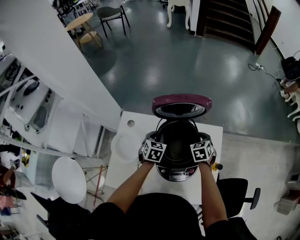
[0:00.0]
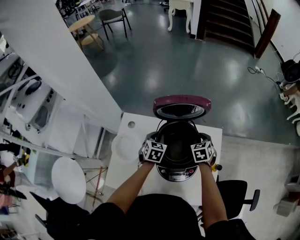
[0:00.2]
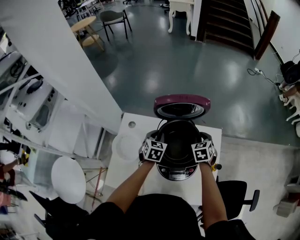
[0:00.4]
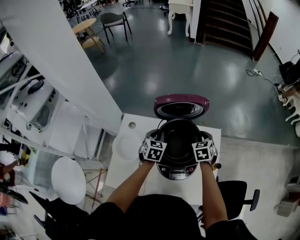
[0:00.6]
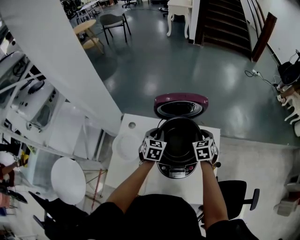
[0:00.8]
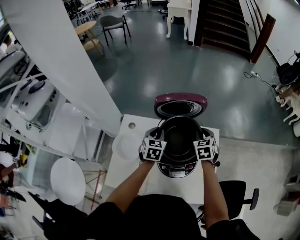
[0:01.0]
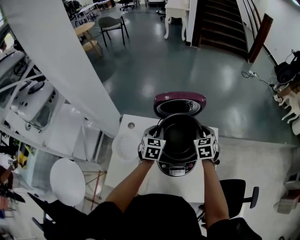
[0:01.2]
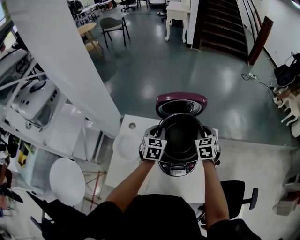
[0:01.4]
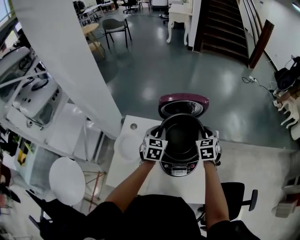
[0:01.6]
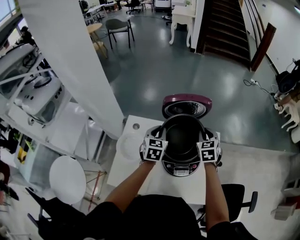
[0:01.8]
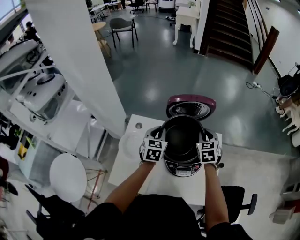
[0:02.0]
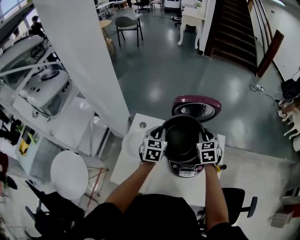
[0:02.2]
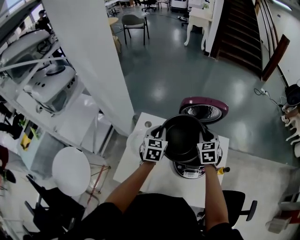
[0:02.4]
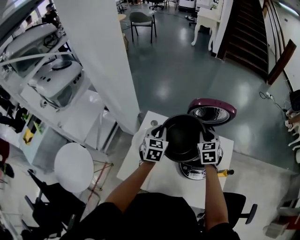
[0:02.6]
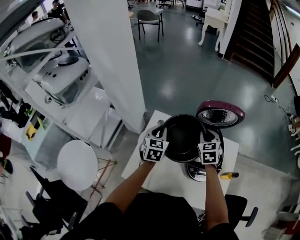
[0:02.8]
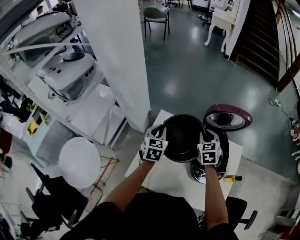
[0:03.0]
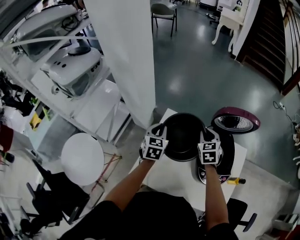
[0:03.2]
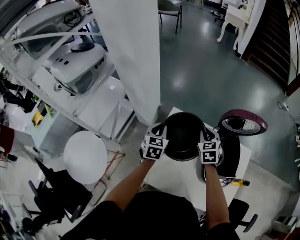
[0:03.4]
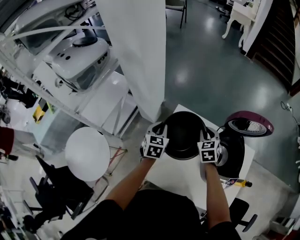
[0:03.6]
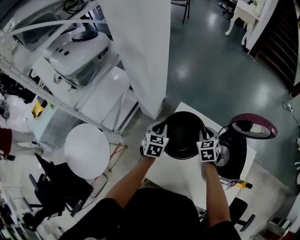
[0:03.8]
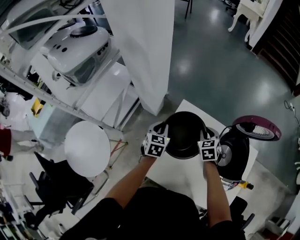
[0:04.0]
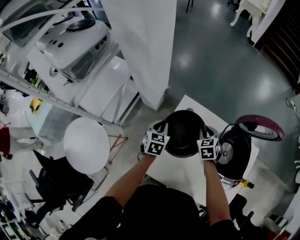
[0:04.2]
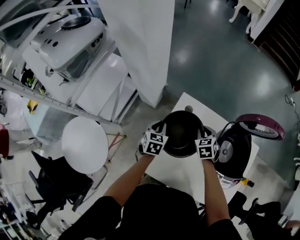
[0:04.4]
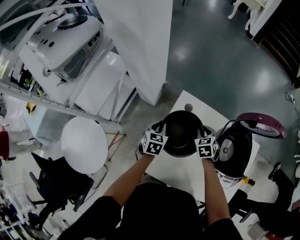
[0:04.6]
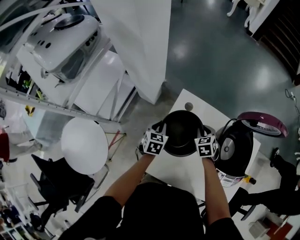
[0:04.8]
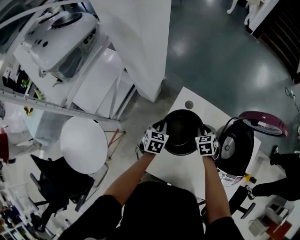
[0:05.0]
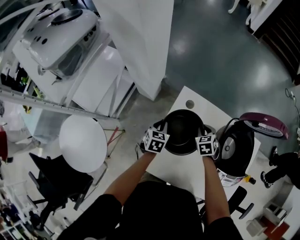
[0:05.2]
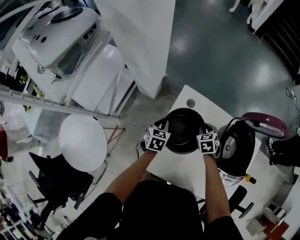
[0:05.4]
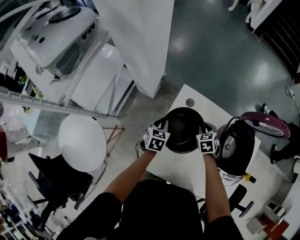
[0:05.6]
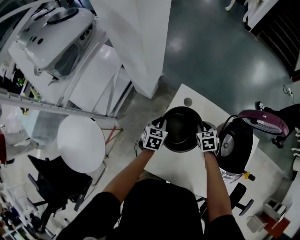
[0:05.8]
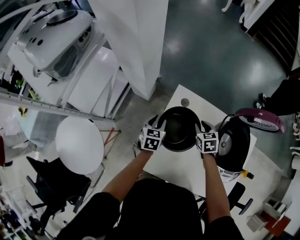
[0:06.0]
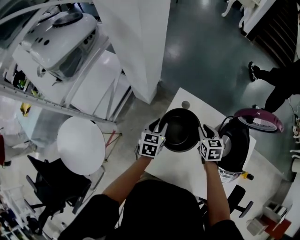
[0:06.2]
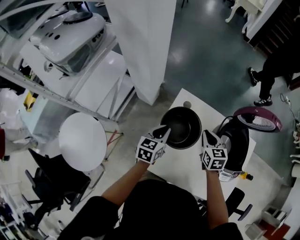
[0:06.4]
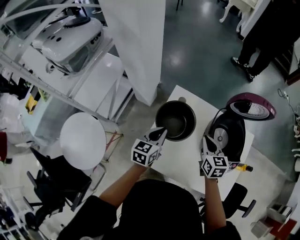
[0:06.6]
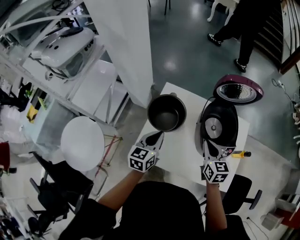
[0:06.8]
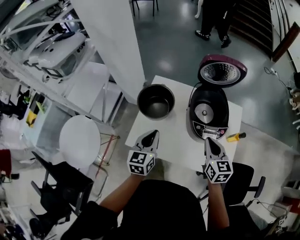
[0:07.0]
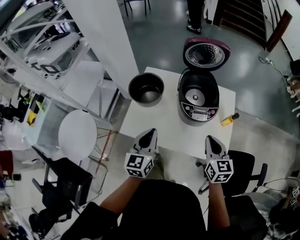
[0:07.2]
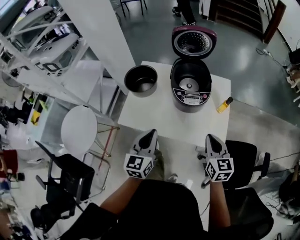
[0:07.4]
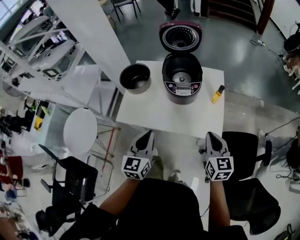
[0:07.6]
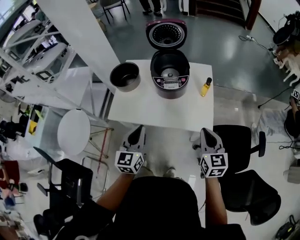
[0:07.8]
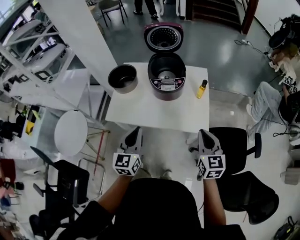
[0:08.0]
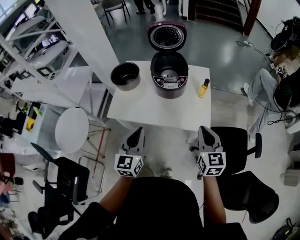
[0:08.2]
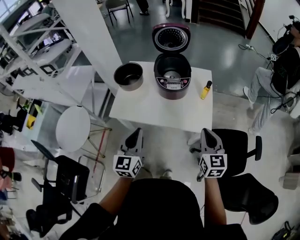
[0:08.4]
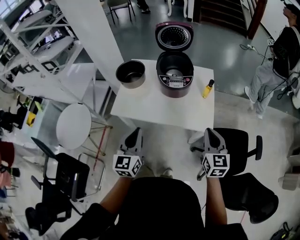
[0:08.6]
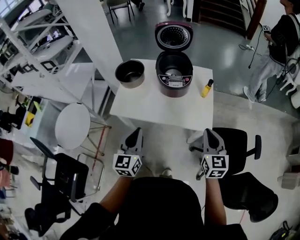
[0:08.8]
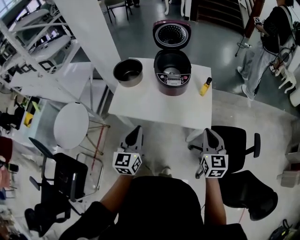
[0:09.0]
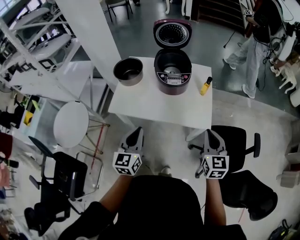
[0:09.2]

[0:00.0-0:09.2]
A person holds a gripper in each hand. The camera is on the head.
0:00.0 to 0:01.6: The two grippers go some 15 cm upward.
0:01.6 to 0:03.0: The two grippers go roughly 20 cm to the left.
0:03.0 to 0:04.6: Both grippers move downward and to the left, about 20 cm.
0:04.6 to 0:06.2: The grippers make only small movements.
0:06.2 to 0:07.6: The pair of grippers is taken backward and to the right, some 60 cm. The left gripper moves upward, about 20 cm, changes its angle by about 30 degrees, and closes, while the right gripper turns by approximately 30 degrees.
0:07.6 to 0:09.2: The two grippers go about 10 cm backward.

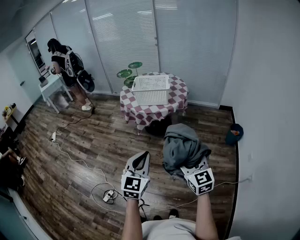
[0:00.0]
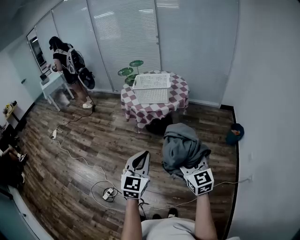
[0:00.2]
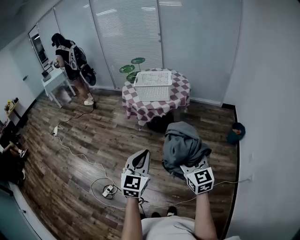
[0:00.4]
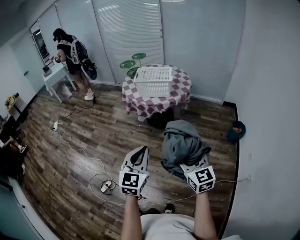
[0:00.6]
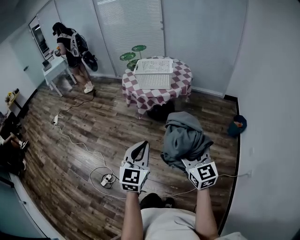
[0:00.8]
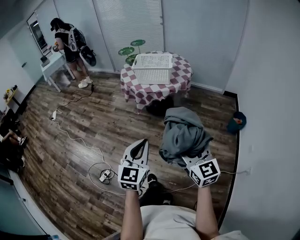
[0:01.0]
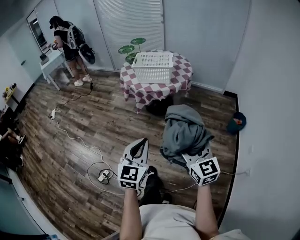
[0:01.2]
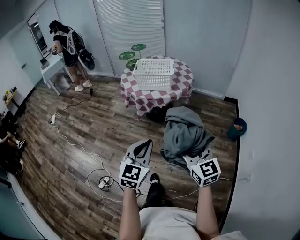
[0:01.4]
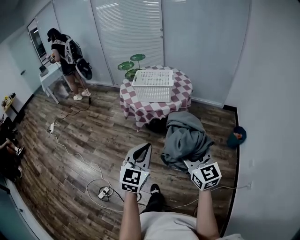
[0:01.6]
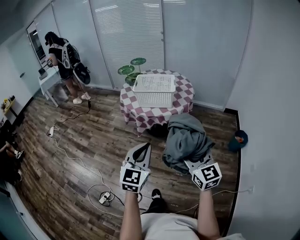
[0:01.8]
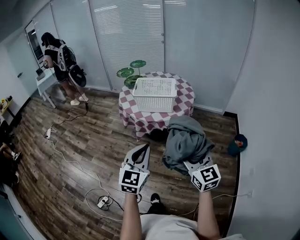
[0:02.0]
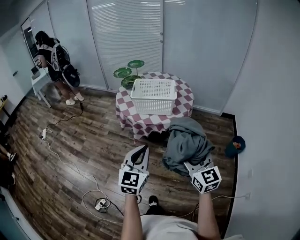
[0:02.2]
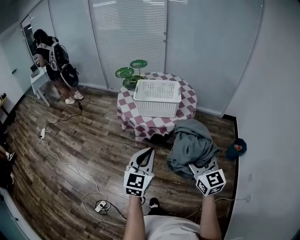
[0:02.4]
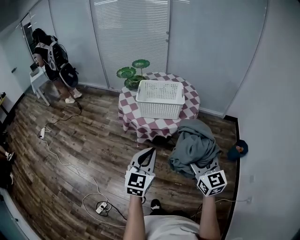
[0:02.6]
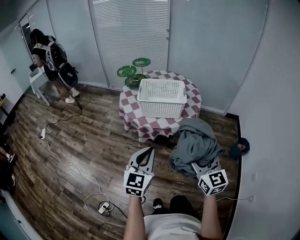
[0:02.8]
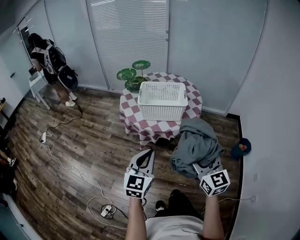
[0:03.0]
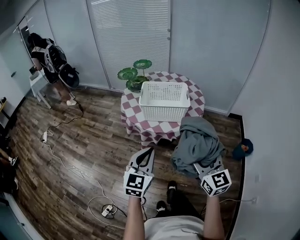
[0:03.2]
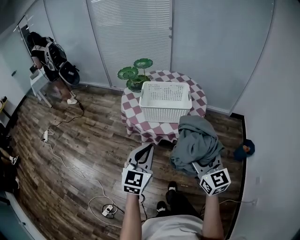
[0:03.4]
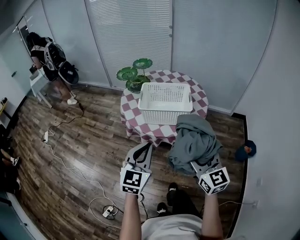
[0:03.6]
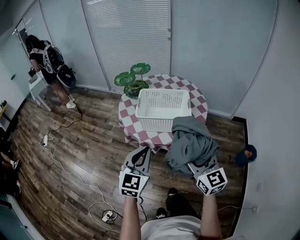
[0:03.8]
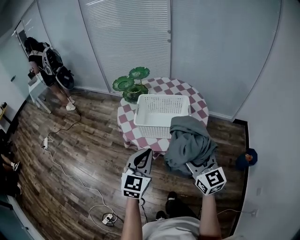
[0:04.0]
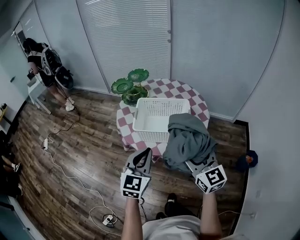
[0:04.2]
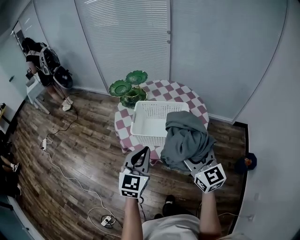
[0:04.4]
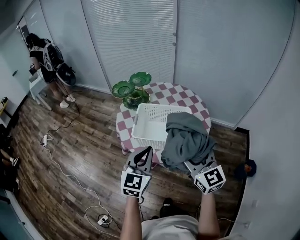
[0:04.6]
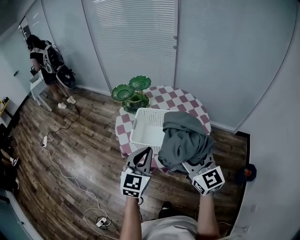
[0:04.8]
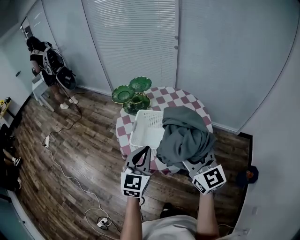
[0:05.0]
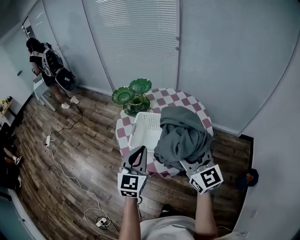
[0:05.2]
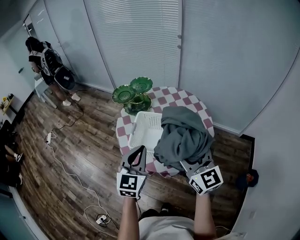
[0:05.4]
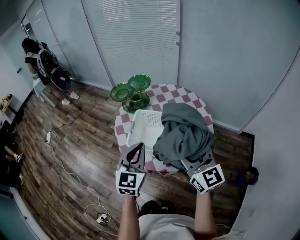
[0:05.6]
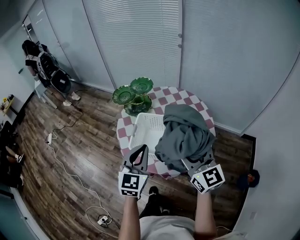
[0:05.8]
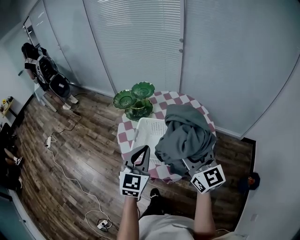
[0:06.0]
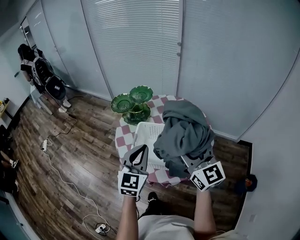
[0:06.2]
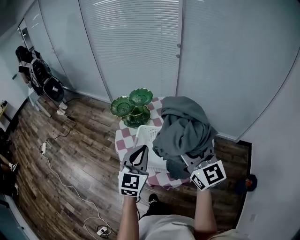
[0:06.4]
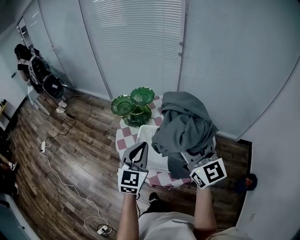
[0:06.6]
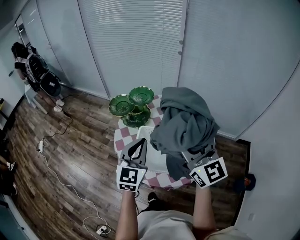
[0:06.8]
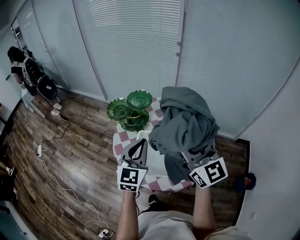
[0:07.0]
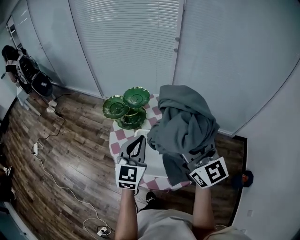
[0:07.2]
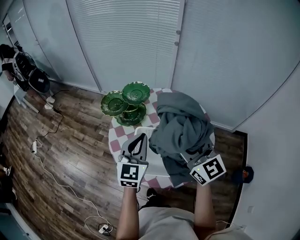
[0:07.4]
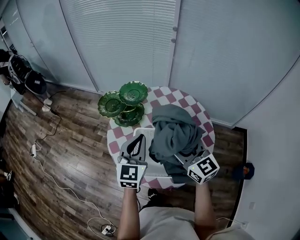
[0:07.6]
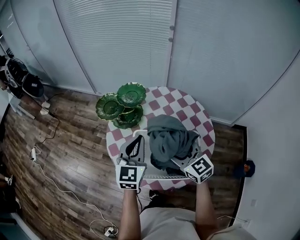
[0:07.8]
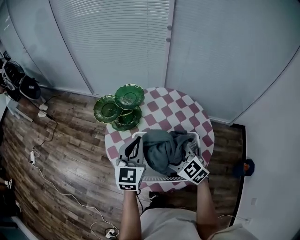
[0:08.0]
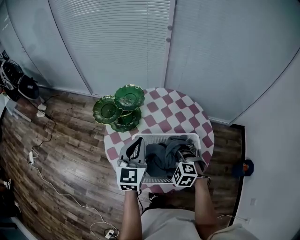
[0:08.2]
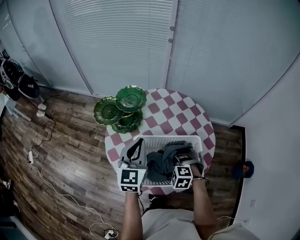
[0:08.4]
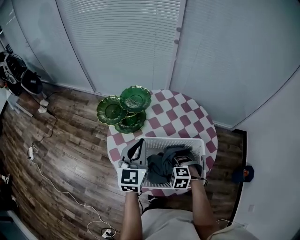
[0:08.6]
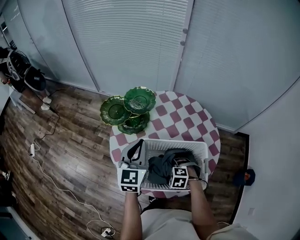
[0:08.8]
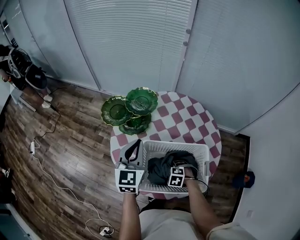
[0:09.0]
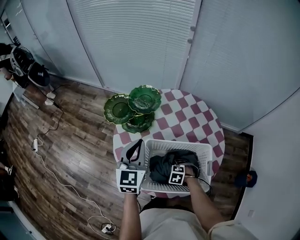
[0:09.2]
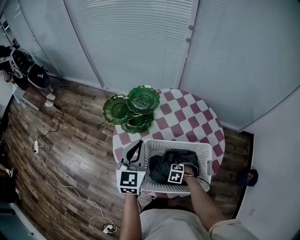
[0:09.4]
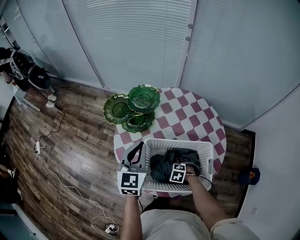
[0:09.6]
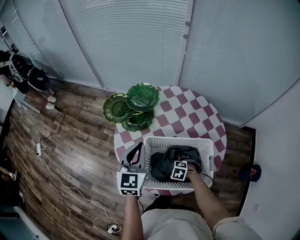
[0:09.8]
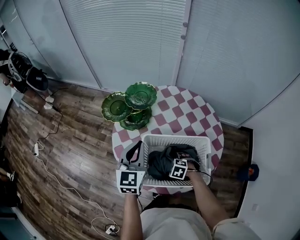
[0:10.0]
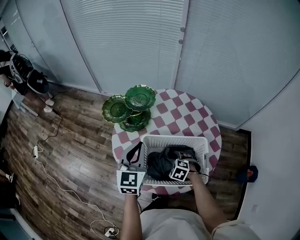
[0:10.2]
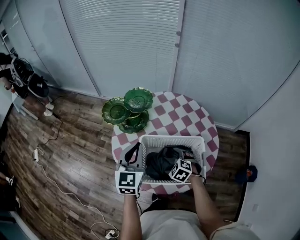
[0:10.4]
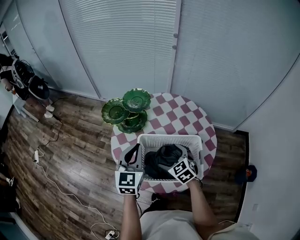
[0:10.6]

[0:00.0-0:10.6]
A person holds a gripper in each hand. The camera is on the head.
0:00.0 to 0:01.6: Both grippers move forward, about 10 cm.
0:01.6 to 0:03.0: The left gripper travels forward and to the left by about 25 cm, while the right gripper travels forward by roughly 20 cm.
0:03.0 to 0:04.6: Both grippers move forward, approximately 25 cm.
0:04.6 to 0:06.0: The grippers both shift forward by some 10 cm.
0:06.0 to 0:07.6: The right gripper shifts roughly 15 cm forward and downward. The left gripper shifts about 15 cm forward.
0:07.6 to 0:09.0: The right gripper goes roughly 35 cm downward, and tips its fingers downward by about 70 degrees; the left gripper ends up approximately 10 cm from where it was.
0:09.0 to 0:10.6: The left gripper moves about 5 cm, while the right gripper travels upward by approximately 20 cm, points its fingers roughly 40 degrees further upward, and opens up.

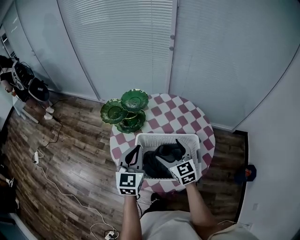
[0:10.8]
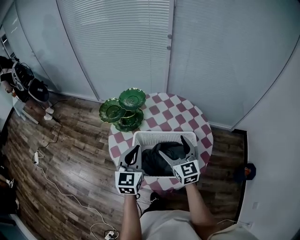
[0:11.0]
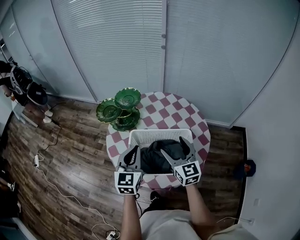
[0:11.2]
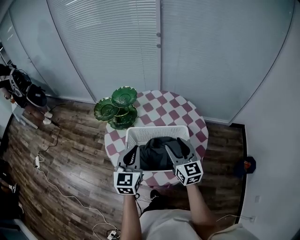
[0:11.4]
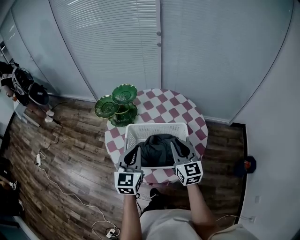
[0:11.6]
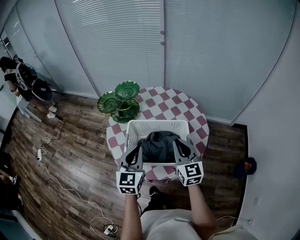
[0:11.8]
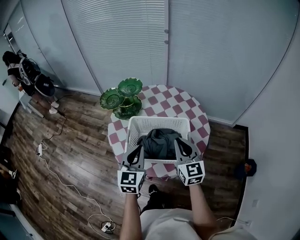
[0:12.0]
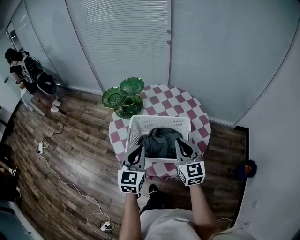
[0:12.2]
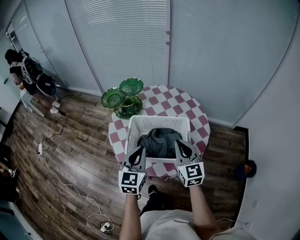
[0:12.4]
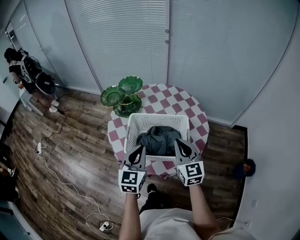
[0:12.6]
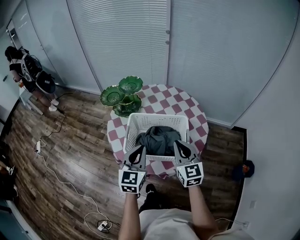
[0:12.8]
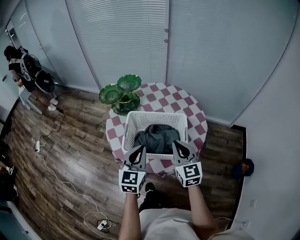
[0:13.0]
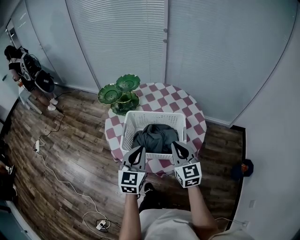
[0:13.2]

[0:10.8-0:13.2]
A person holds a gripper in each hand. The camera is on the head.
0:10.8 to 0:12.0: The left gripper heads backward and to the right, covering about 10 cm. The right gripper travels to the right, backward and upward by some 15 cm, and closes up.
0:12.0 to 0:13.2: The grippers make only small movements.

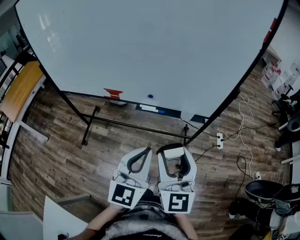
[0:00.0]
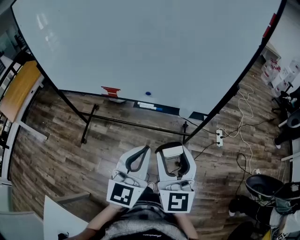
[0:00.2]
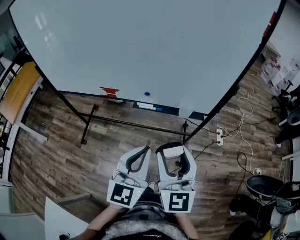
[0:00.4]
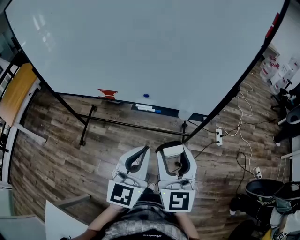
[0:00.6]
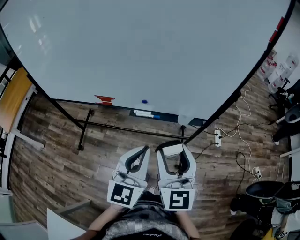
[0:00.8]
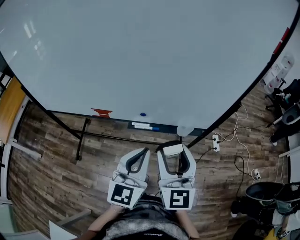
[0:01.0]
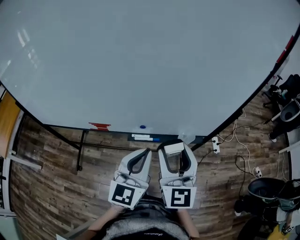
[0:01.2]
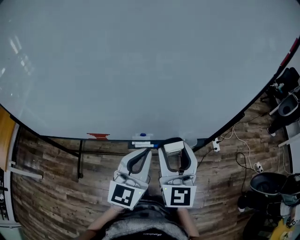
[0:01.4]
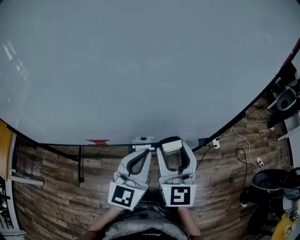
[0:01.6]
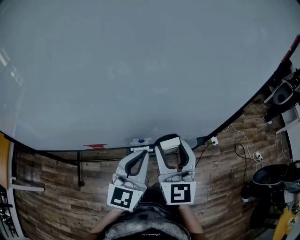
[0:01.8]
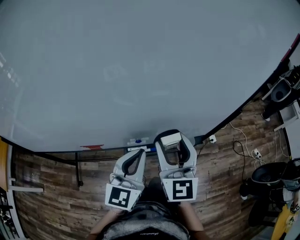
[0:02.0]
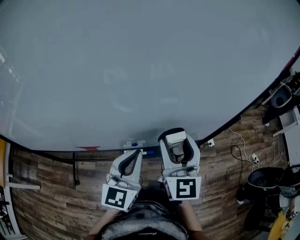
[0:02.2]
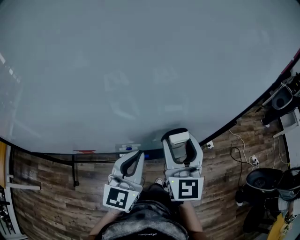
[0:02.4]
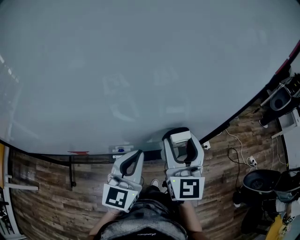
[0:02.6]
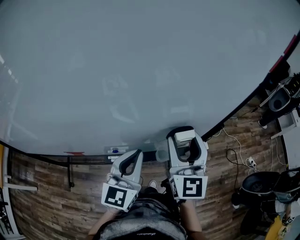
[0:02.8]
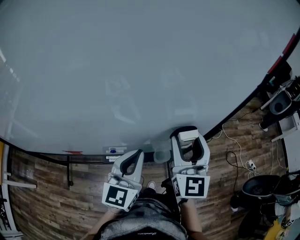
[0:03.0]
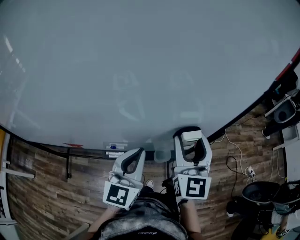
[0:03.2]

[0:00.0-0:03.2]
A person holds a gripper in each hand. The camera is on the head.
0:00.0 to 0:01.6: Both grippers move forward, about 25 cm.
0:01.6 to 0:03.2: The left gripper is displaced to the right and forward by about 15 cm. Meanwhile the right gripper shifts roughly 20 cm to the right and forward.
